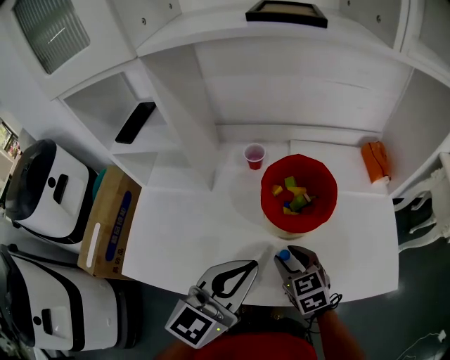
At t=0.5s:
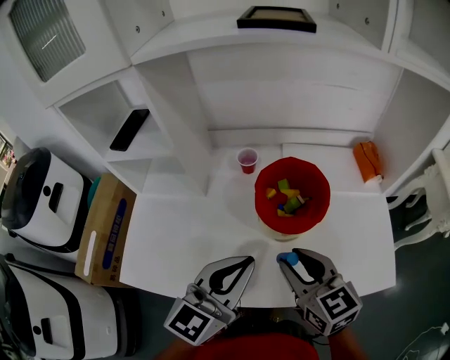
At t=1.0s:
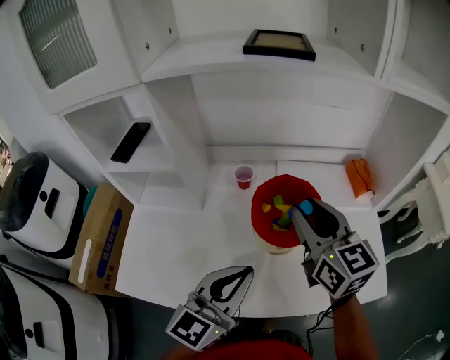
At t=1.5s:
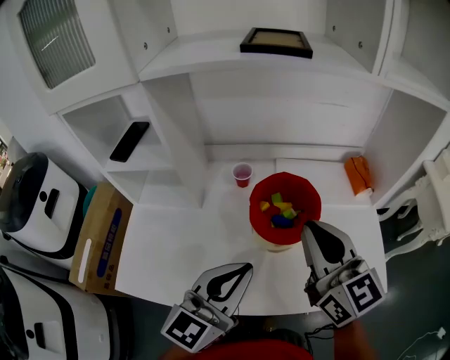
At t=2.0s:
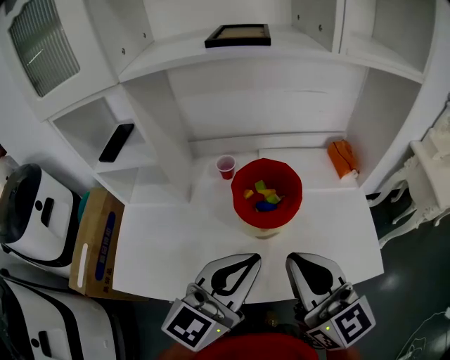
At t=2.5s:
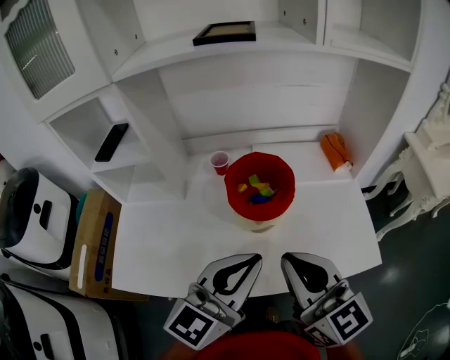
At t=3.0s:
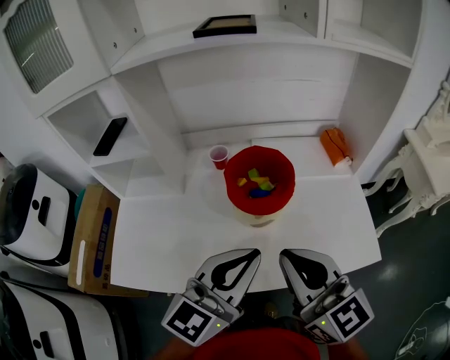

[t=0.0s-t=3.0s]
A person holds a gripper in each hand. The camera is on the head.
t=0.0s to t=1.5s: The right gripper goes about 25 cm upward, tips its fingers upward by some 40 degrees, and closes.
t=1.5s to t=3.0s: The left gripper moves to the right, approximately 5 cm; the right gripper heads backward, covering approximately 10 cm.

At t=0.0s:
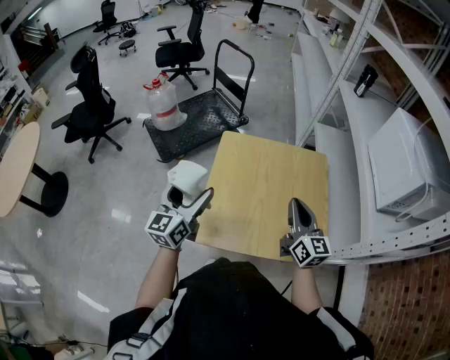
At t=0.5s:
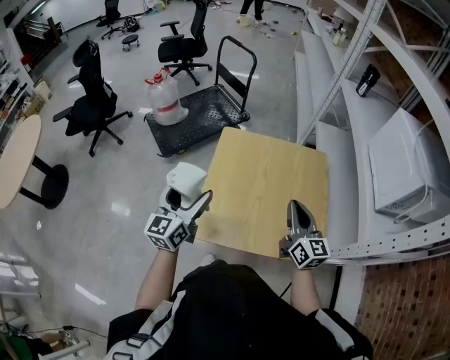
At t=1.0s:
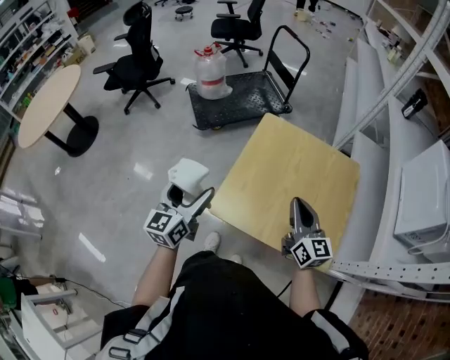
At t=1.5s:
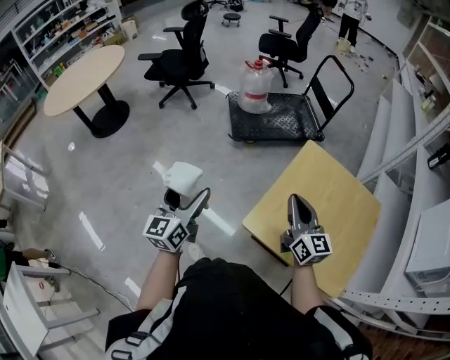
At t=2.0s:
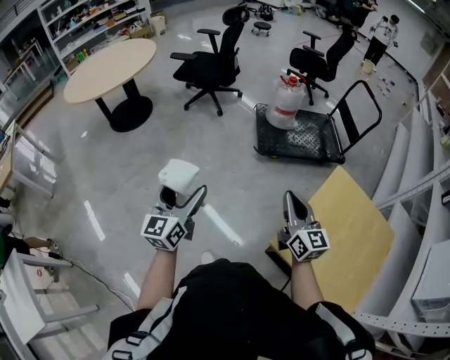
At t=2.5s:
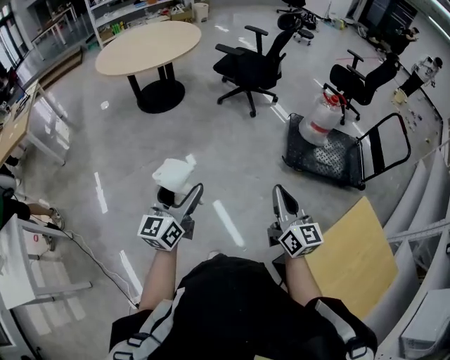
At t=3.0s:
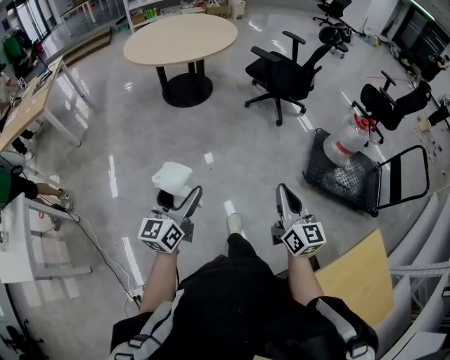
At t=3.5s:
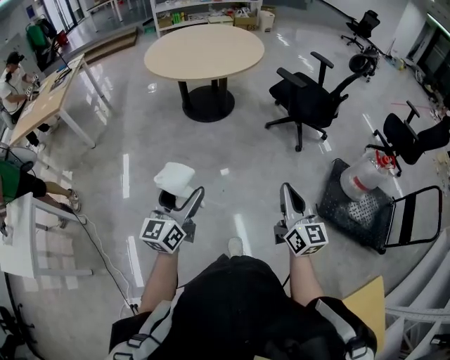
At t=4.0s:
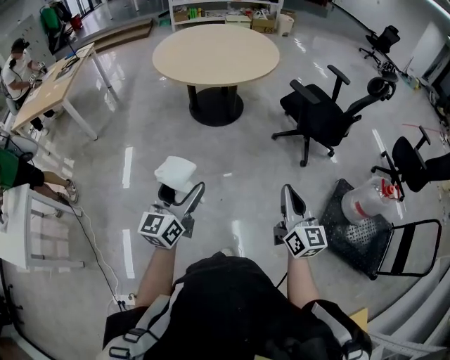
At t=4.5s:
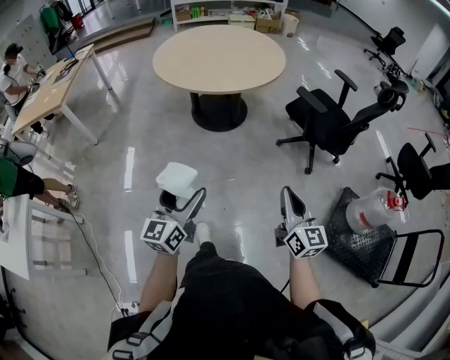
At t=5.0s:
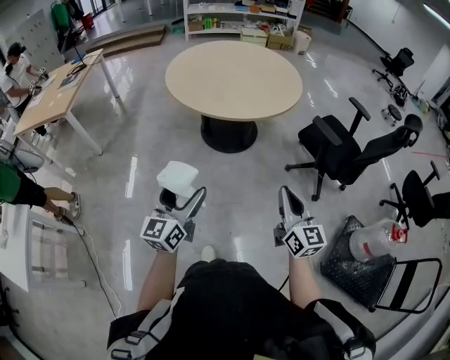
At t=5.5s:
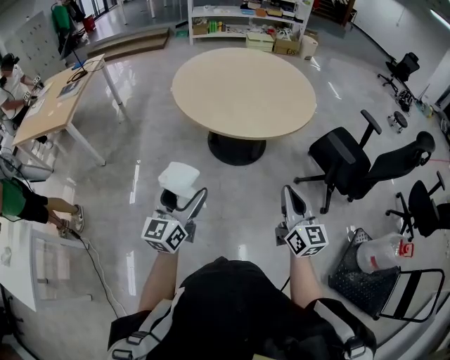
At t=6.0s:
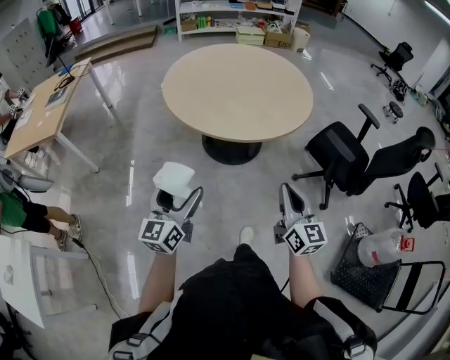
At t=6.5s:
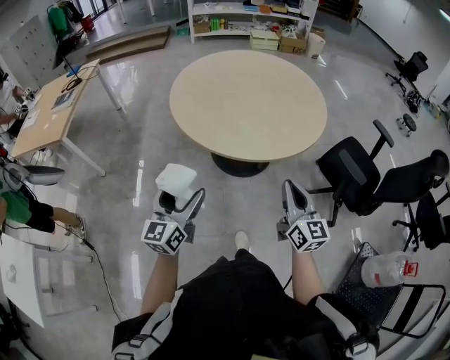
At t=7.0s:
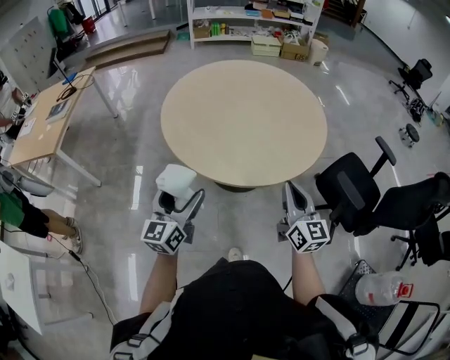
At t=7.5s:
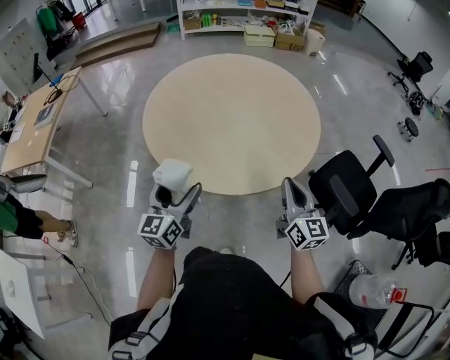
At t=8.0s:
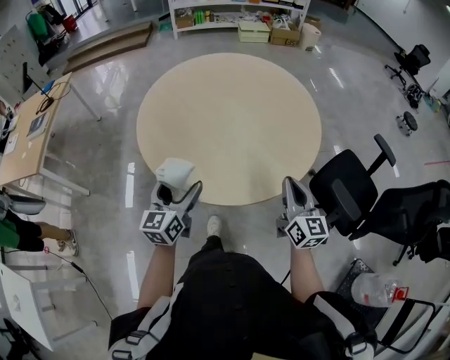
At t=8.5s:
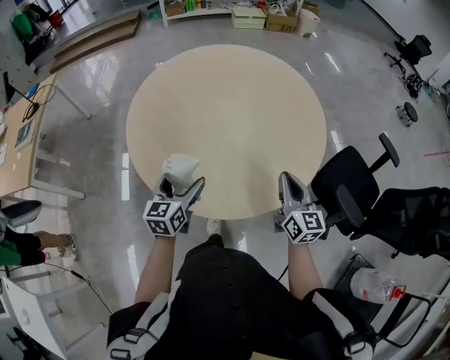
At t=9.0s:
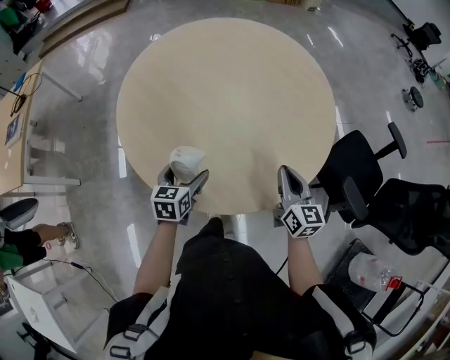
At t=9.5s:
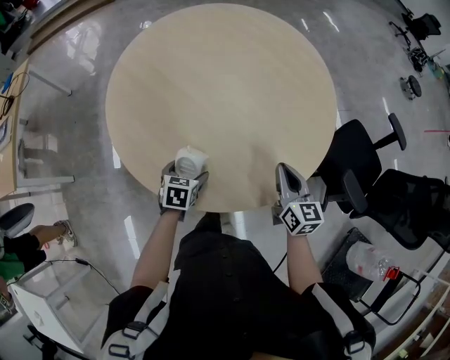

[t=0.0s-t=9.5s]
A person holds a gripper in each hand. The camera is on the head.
t=0.0s to t=2.0s: The left gripper ends up roughly 40 cm from where it was, and swivels approximately 40 degrees. Meanwhile the right gripper shifts by roughly 40 cm, and changes its angle by roughly 40 degrees.
t=2.0s to t=4.0s: The right gripper changes place by about 50 cm, and rotates some 30 degrees; the left gripper ends up some 40 cm from where it was, and rotates approximately 30 degrees.
t=4.0s to t=5.5s: Both grippers travel together forward and to the left, approximately 35 cm.
t=5.5s to t=7.5s: The grippers both shift forward by approximately 35 cm.
t=7.5s to t=9.5s: The right gripper travels forward and downward by some 20 cm, and swivels some 20 degrees. The left gripper goes about 30 cm downward and forward, and points its fingers roughly 50 degrees further downward.

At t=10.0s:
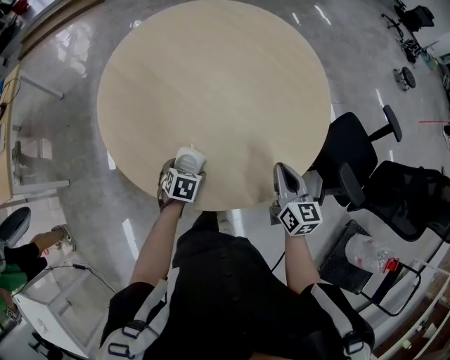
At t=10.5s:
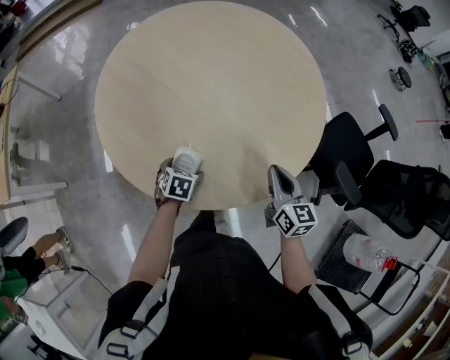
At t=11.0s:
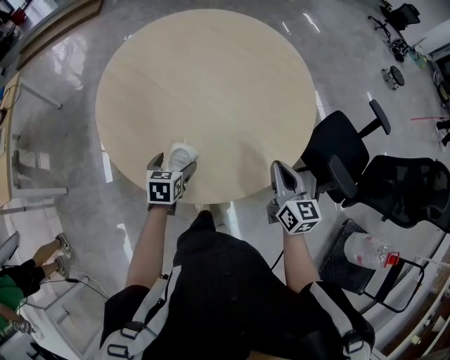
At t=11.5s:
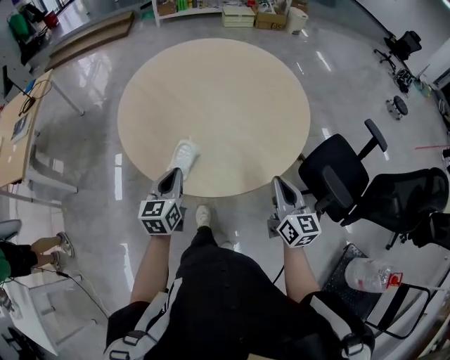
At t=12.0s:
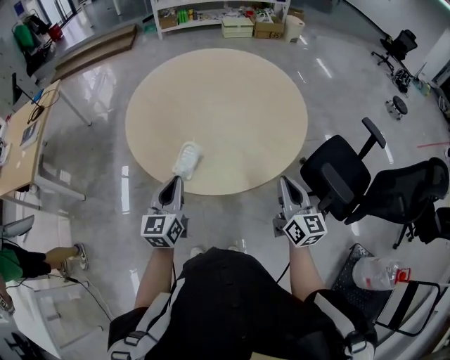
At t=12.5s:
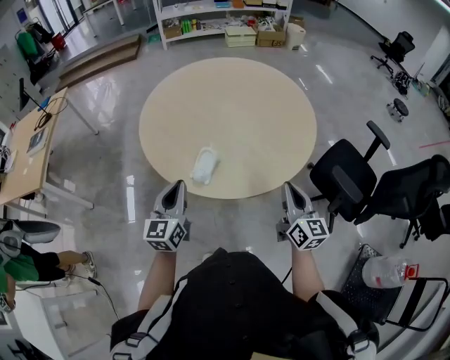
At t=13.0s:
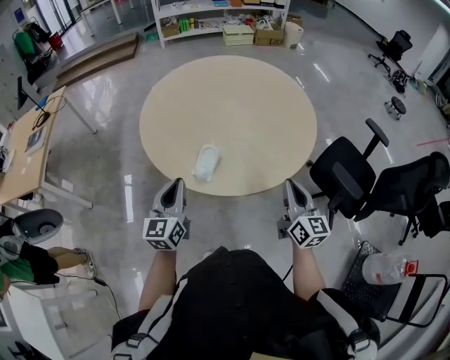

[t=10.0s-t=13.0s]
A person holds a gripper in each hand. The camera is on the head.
t=10.0s to t=11.5s: The right gripper heads backward and upward, covering some 15 cm. Meanwhile the left gripper shifts about 20 cm upward, tips its fingers upward by about 50 degrees, and closes its fingers.
t=11.5s to t=13.0s: The left gripper is displaced to the left, upward and backward by roughly 10 cm. Meanwhile the right gripper ends up approximately 5 cm from where it was.

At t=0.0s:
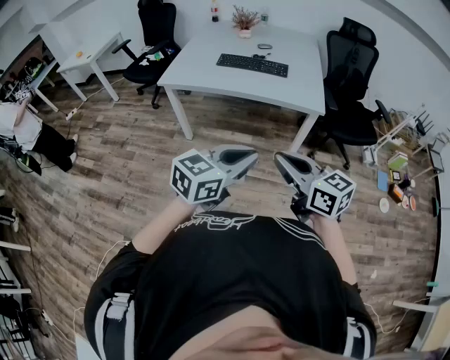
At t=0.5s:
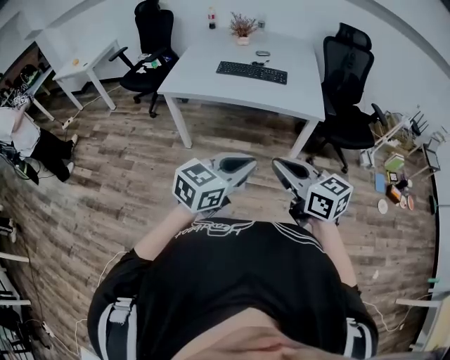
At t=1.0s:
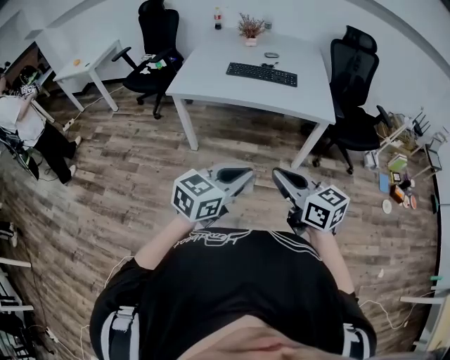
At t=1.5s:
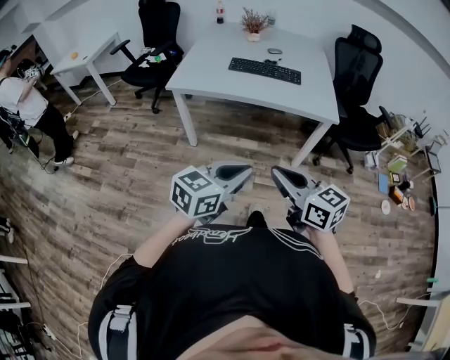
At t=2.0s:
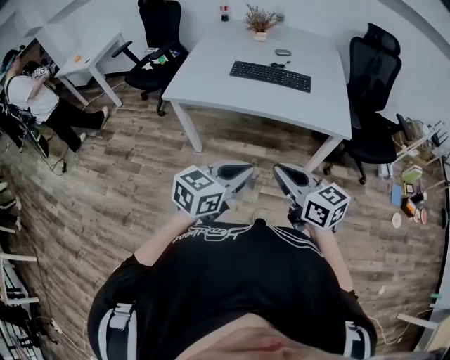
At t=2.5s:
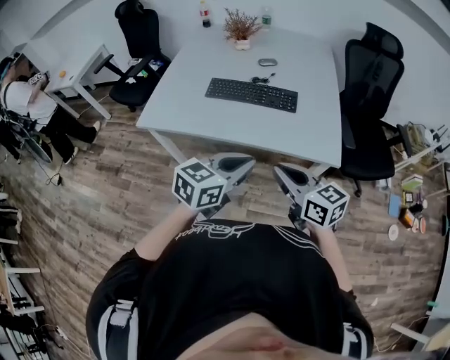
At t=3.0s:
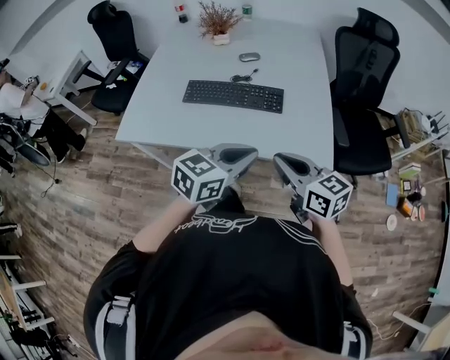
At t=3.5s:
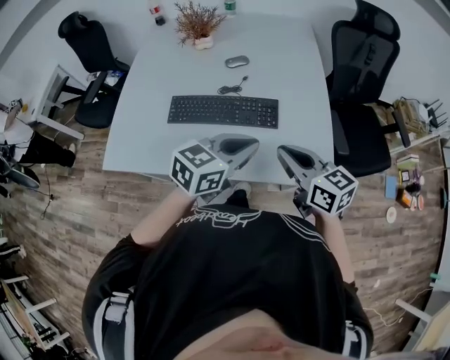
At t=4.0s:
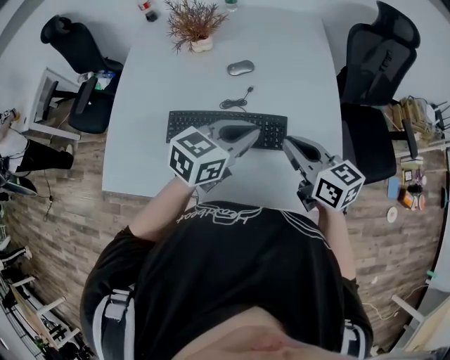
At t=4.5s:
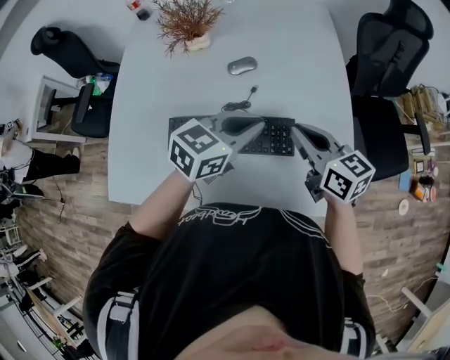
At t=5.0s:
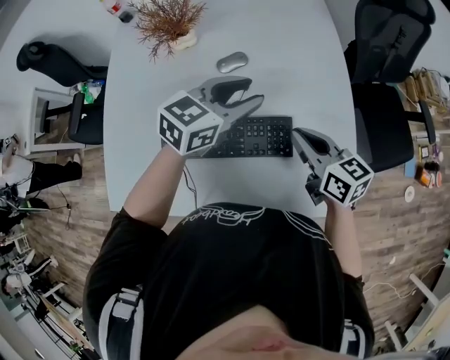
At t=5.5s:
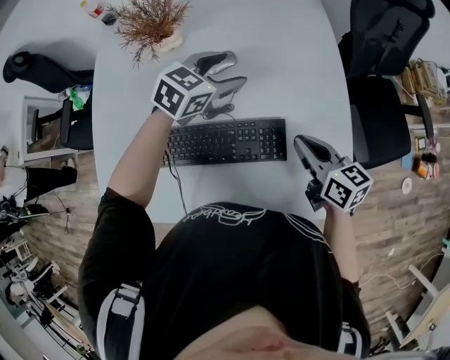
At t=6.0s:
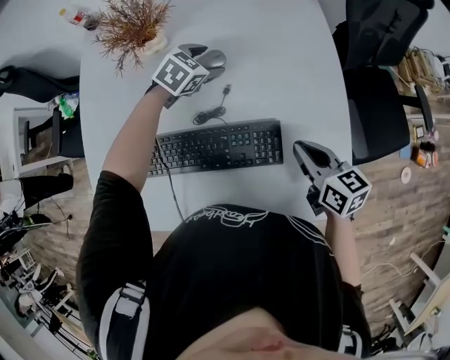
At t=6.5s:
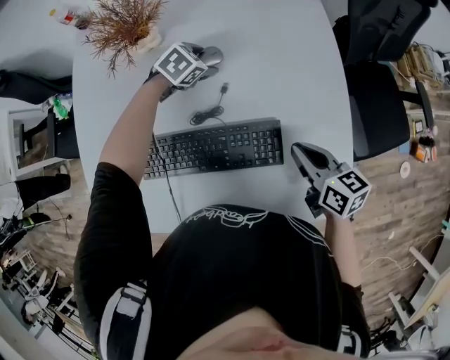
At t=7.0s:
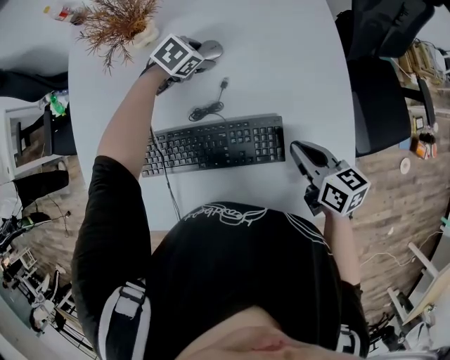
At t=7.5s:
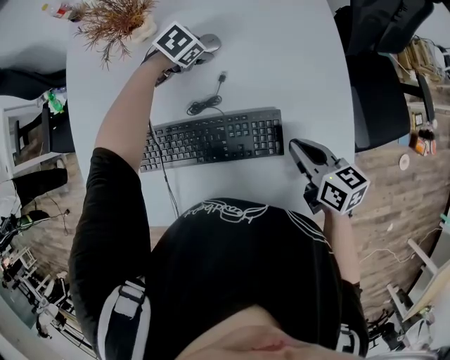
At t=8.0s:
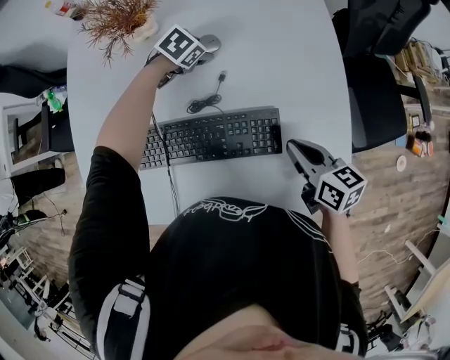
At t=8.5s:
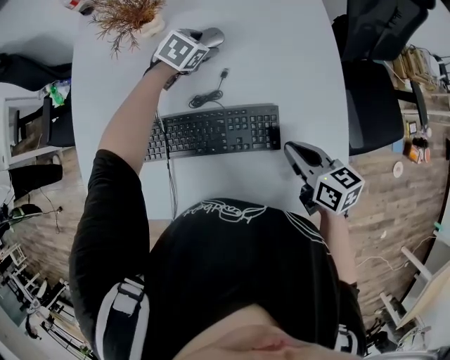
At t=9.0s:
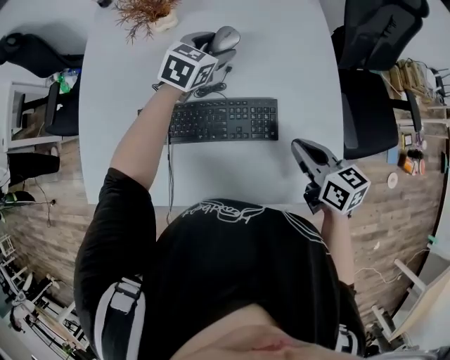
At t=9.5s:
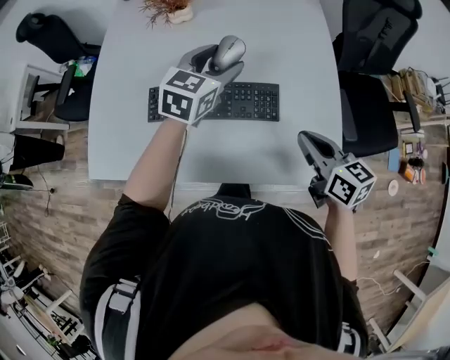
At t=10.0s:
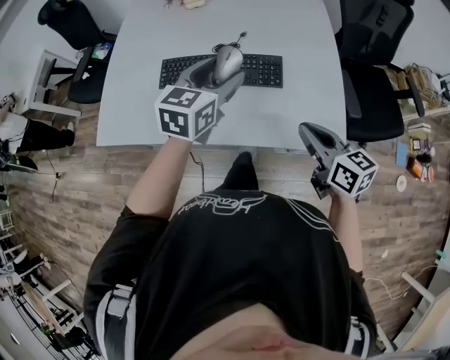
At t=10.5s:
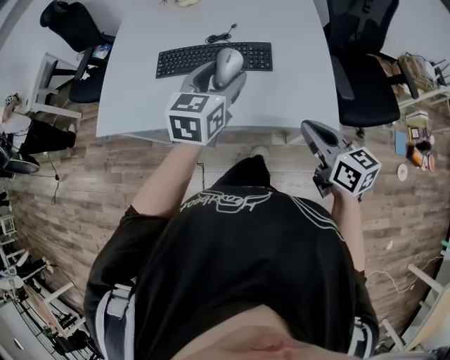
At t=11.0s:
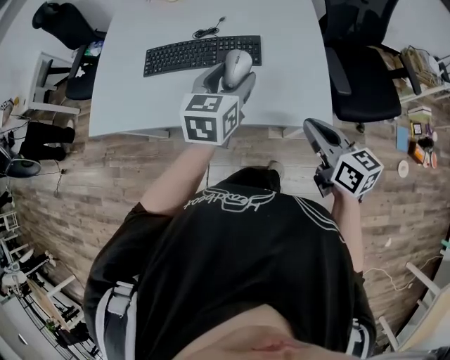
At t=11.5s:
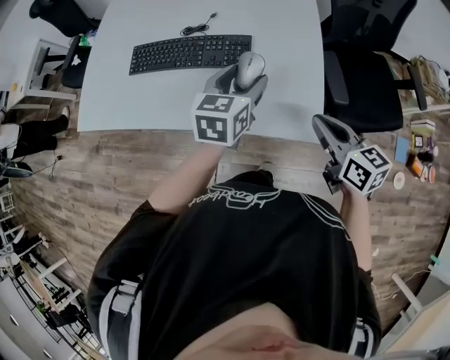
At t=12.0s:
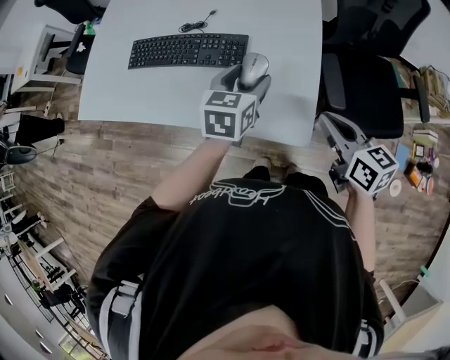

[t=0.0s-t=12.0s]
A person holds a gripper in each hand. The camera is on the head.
t=0.0s to t=2.0s: The left gripper travels forward, to the left and downward by approximately 20 cm, while the right gripper heads forward and to the left, covering about 20 cm.
t=2.0s to t=4.0s: The pair of grippers is taken forward, roughly 60 cm.
t=4.0s to t=6.0s: The left gripper shifts roughly 35 cm forward and downward, angles its fingers downward, by about 30 degrees, and opens up. Meanwhile the right gripper goes some 15 cm downward, forward and to the right.
t=6.0s to t=8.0s: The left gripper shifts approximately 5 cm downward.
t=8.0s to t=10.0s: The left gripper shifts roughly 50 cm backward and upward, and tips its fingers upward by some 40 degrees. Meanwhile the right gripper shifts roughly 25 cm backward and upward.
t=10.0s to t=12.0s: The right gripper travels to the right by about 20 cm. The left gripper is displaced to the right and downward by approximately 20 cm.
